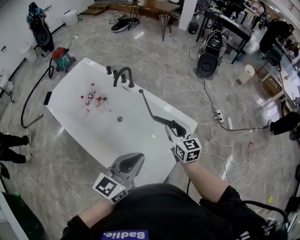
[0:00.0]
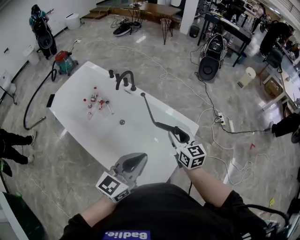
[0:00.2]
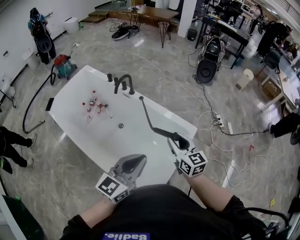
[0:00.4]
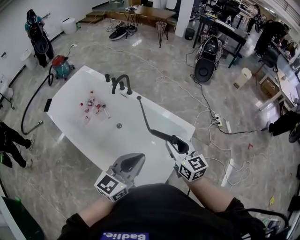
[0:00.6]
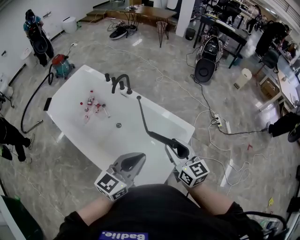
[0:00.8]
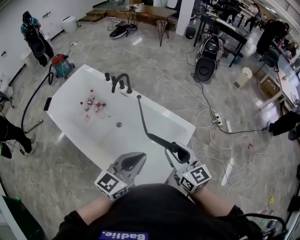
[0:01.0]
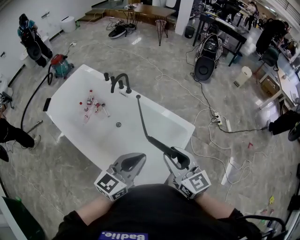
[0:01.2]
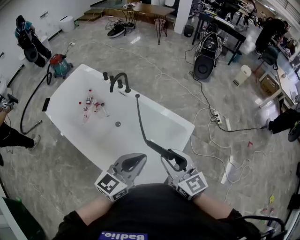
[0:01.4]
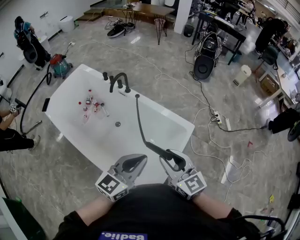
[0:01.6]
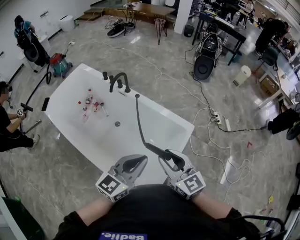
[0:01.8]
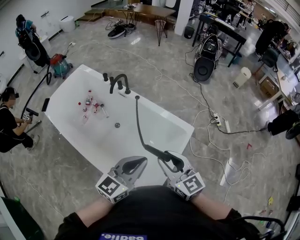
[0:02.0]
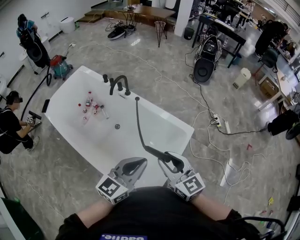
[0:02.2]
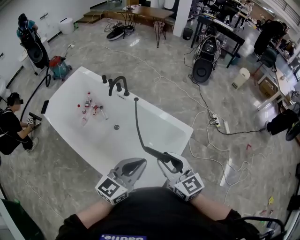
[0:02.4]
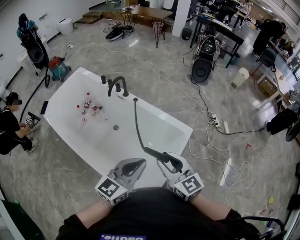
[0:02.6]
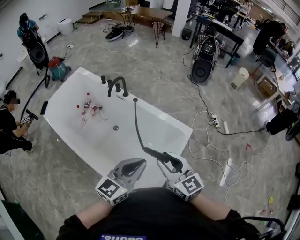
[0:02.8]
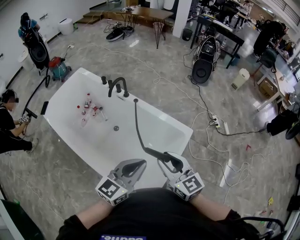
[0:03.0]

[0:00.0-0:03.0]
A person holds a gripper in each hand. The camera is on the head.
0:00.0 to 0:01.6: The right gripper heads backward and upward, covering some 15 cm.
0:01.6 to 0:03.0: There are only small adjustments of the grippers.

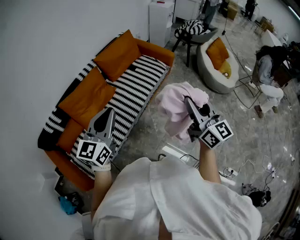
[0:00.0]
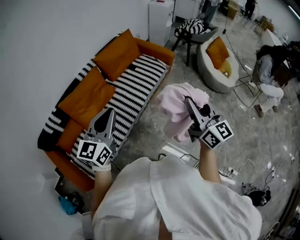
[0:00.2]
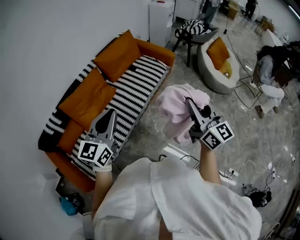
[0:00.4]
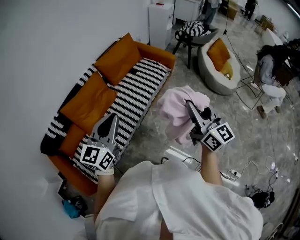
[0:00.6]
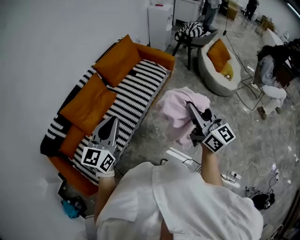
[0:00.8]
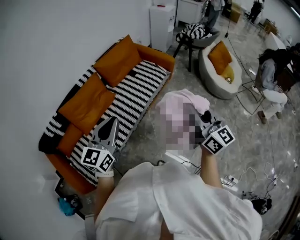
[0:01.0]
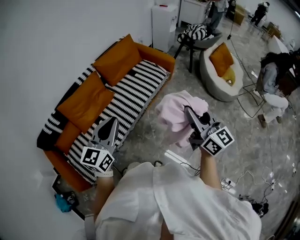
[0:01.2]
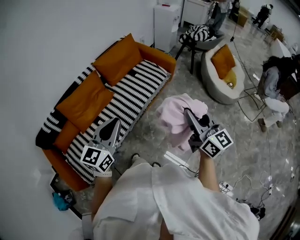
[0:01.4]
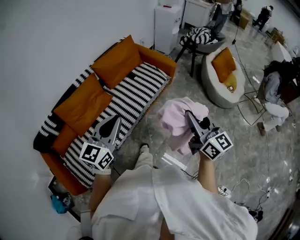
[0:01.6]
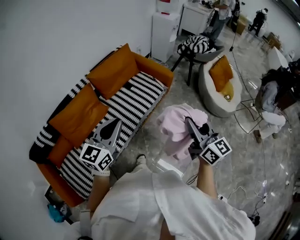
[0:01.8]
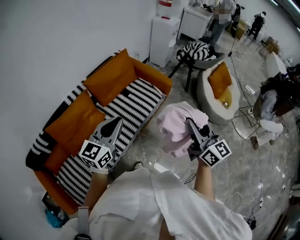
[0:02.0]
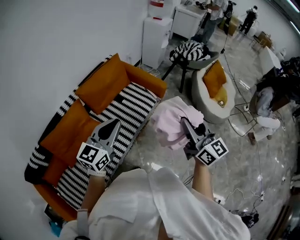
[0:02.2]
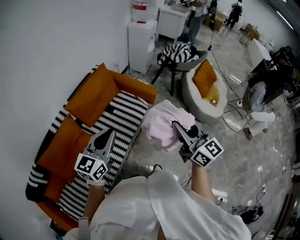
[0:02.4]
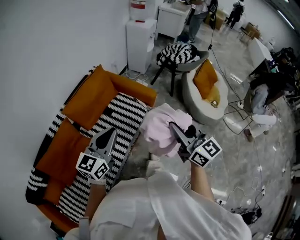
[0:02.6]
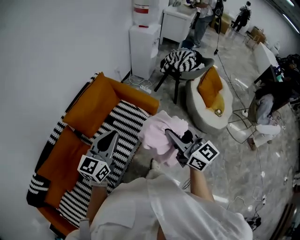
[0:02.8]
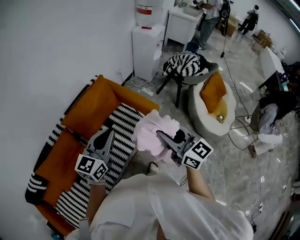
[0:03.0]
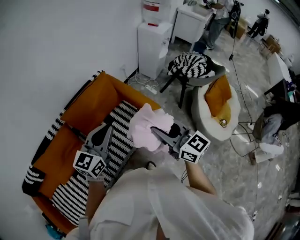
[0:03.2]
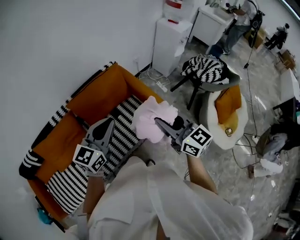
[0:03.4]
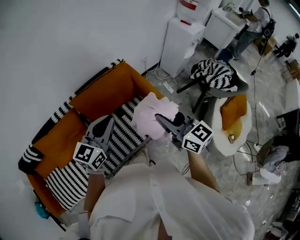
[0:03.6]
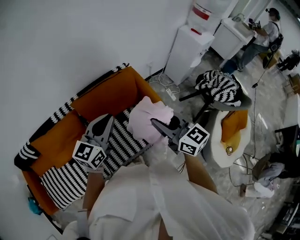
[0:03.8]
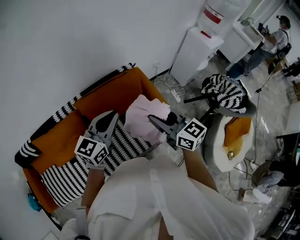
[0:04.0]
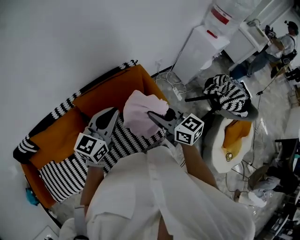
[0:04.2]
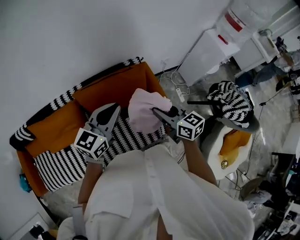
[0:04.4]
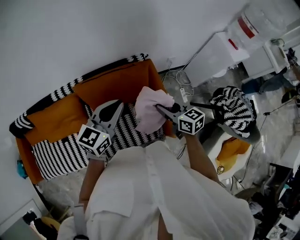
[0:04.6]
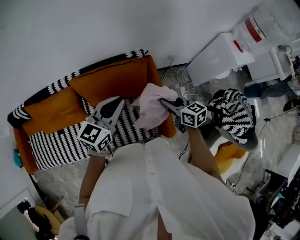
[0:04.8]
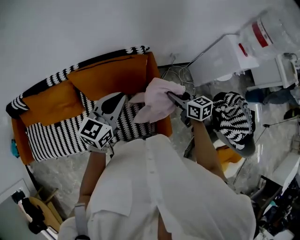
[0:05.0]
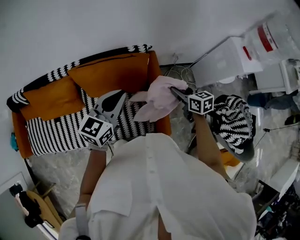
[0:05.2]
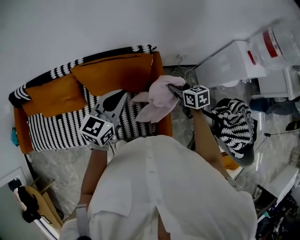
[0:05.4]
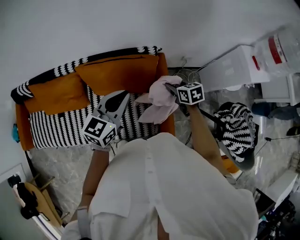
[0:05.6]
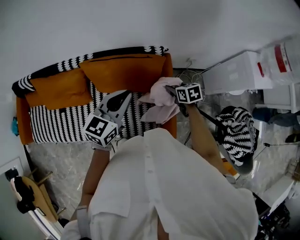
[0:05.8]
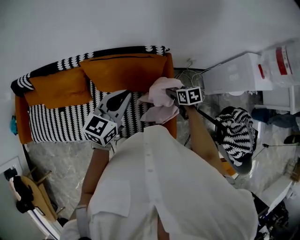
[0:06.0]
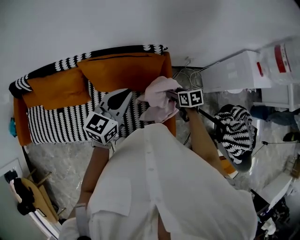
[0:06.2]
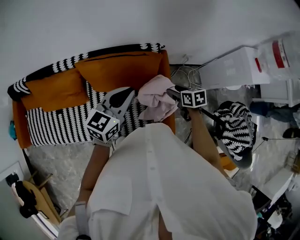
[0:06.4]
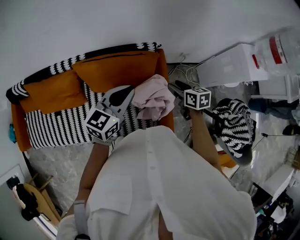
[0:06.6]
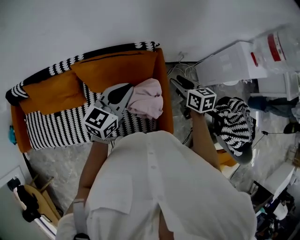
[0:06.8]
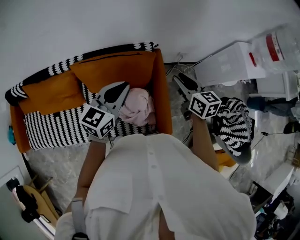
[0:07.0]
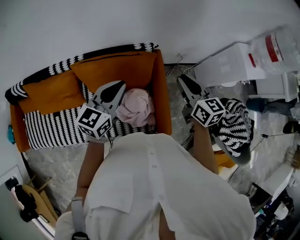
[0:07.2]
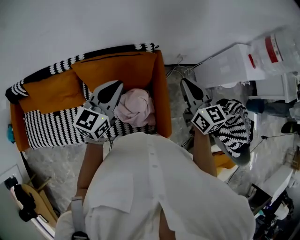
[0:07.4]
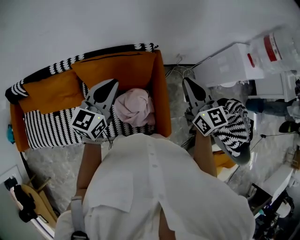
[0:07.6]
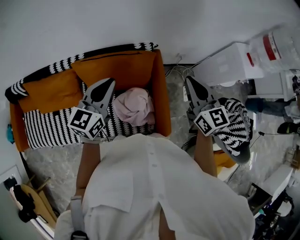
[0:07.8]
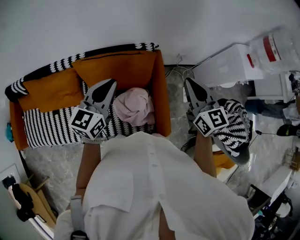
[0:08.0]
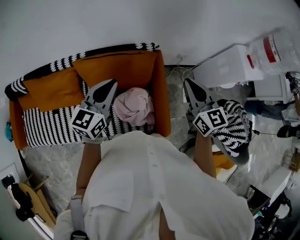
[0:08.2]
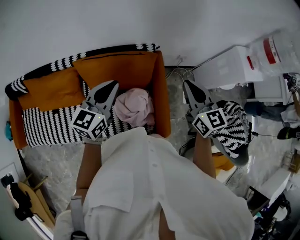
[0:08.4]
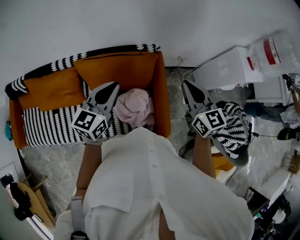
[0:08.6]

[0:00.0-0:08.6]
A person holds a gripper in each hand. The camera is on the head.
0:00.0 to 0:01.4: The two grippers go approximately 10 cm to the right.
0:01.4 to 0:02.8: The grippers both shift forward by roughly 40 cm.
0:02.8 to 0:04.4: The left gripper ends up about 30 cm from where it was, and changes its angle by some 30 degrees, while the right gripper shifts by some 40 cm, and rotates about 50 degrees.
0:04.4 to 0:05.8: The left gripper moves to the right and downward, approximately 10 cm, and turns by about 20 degrees. The right gripper moves downward, forward and to the right, approximately 25 cm, and angles its fingers downward, by some 40 degrees.
0:05.8 to 0:07.2: The right gripper is displaced upward by about 20 cm, points its fingers about 30 degrees further upward, and closes its fingers.
0:07.2 to 0:08.6: The right gripper changes place by approximately 5 cm.

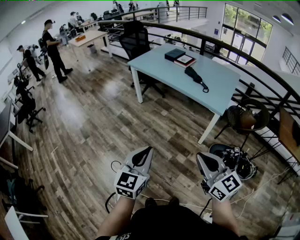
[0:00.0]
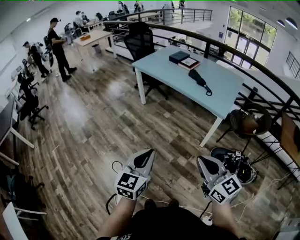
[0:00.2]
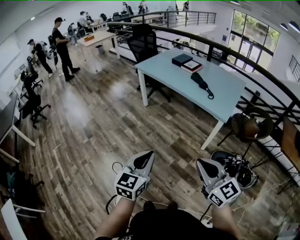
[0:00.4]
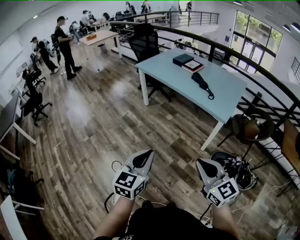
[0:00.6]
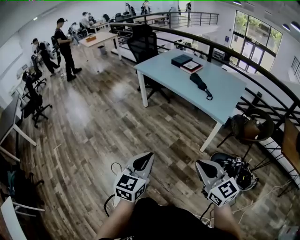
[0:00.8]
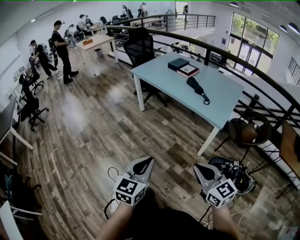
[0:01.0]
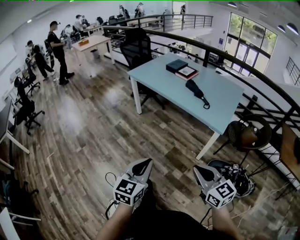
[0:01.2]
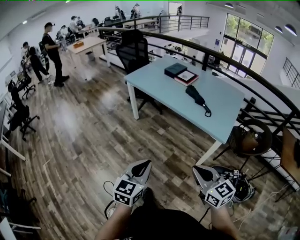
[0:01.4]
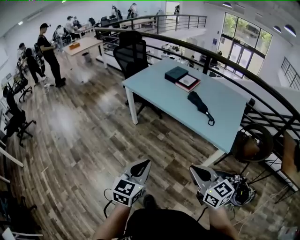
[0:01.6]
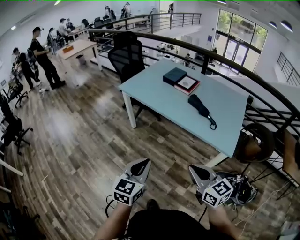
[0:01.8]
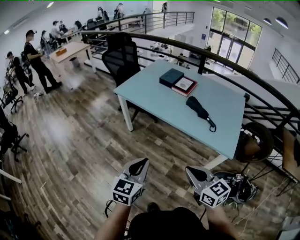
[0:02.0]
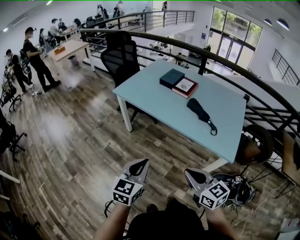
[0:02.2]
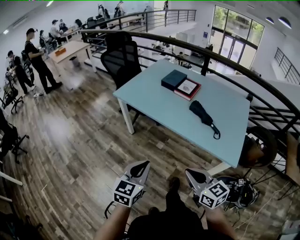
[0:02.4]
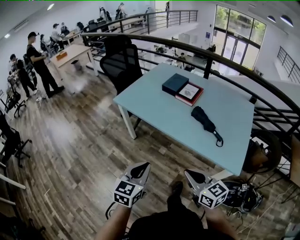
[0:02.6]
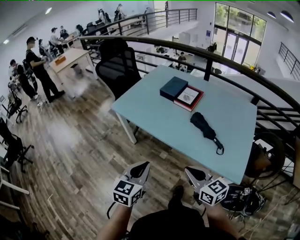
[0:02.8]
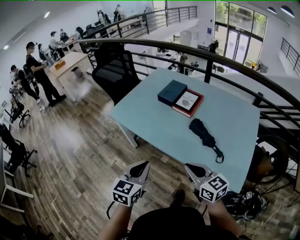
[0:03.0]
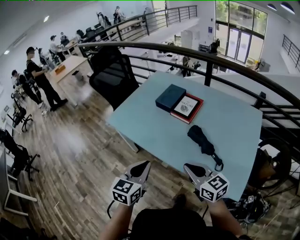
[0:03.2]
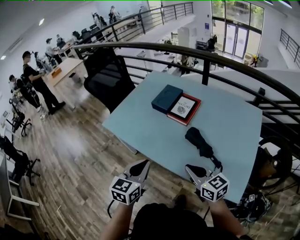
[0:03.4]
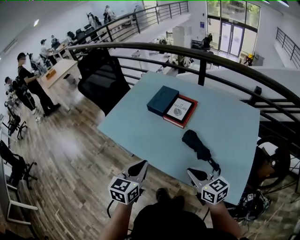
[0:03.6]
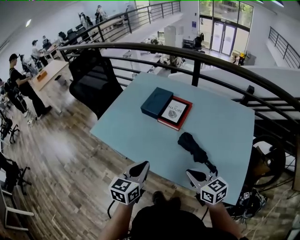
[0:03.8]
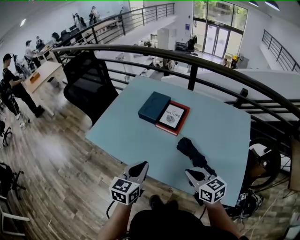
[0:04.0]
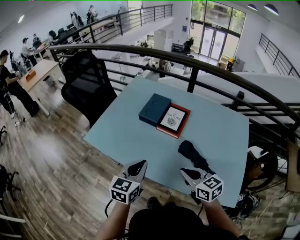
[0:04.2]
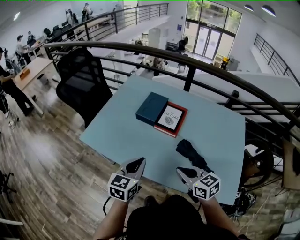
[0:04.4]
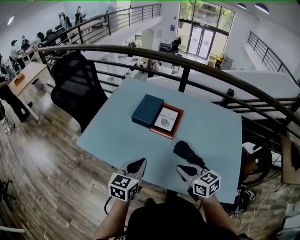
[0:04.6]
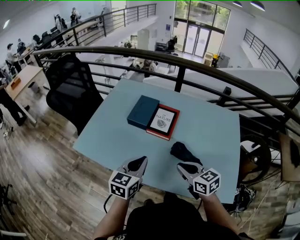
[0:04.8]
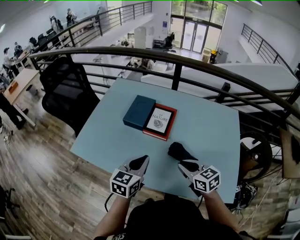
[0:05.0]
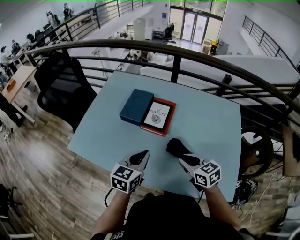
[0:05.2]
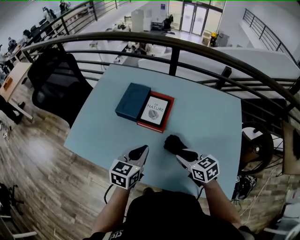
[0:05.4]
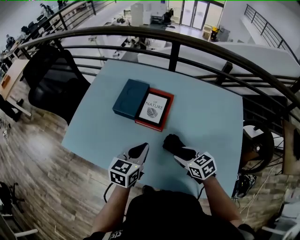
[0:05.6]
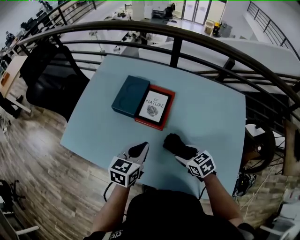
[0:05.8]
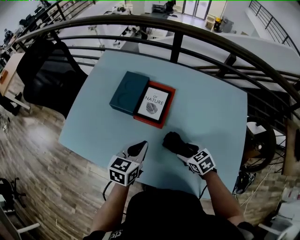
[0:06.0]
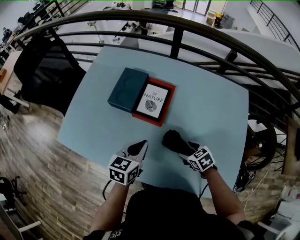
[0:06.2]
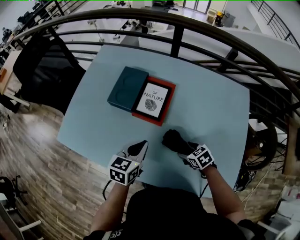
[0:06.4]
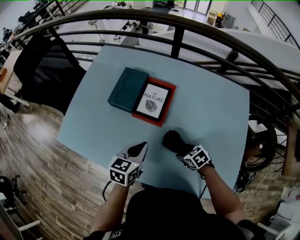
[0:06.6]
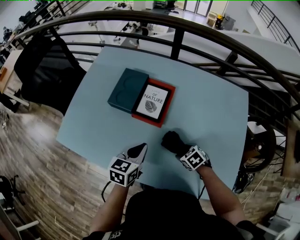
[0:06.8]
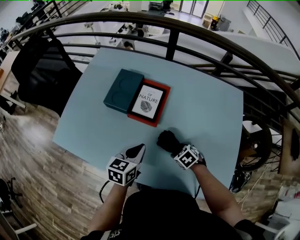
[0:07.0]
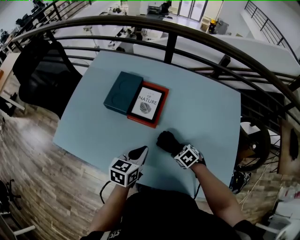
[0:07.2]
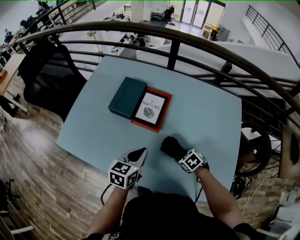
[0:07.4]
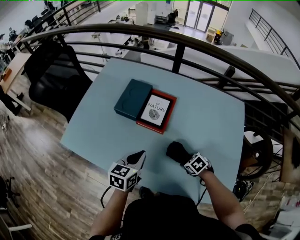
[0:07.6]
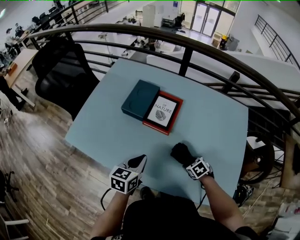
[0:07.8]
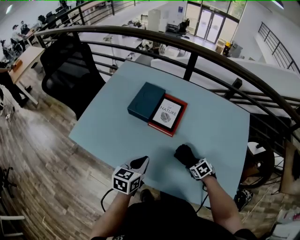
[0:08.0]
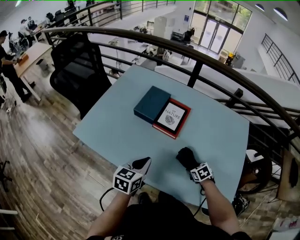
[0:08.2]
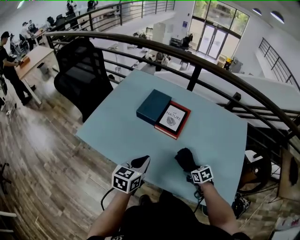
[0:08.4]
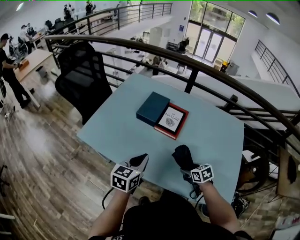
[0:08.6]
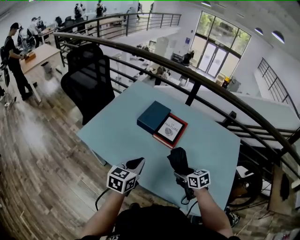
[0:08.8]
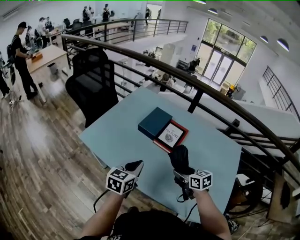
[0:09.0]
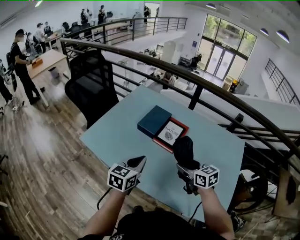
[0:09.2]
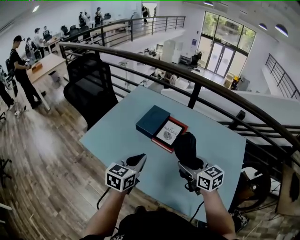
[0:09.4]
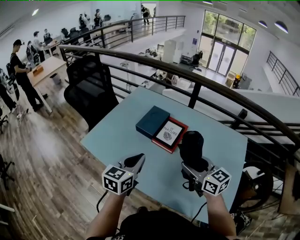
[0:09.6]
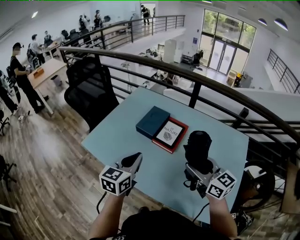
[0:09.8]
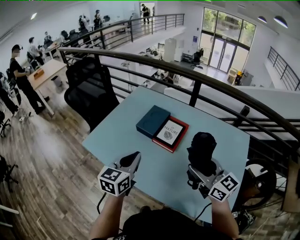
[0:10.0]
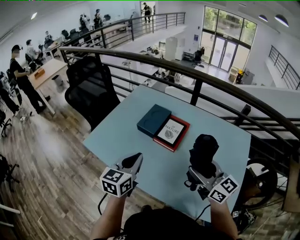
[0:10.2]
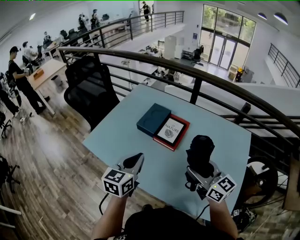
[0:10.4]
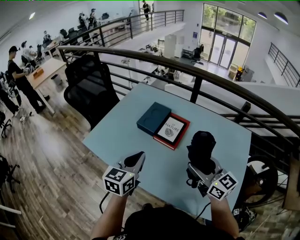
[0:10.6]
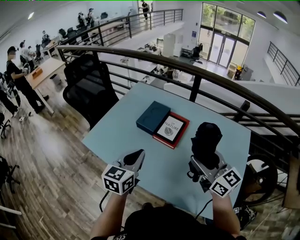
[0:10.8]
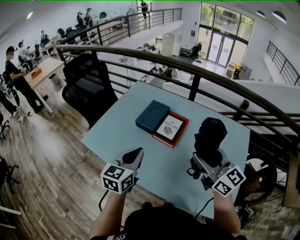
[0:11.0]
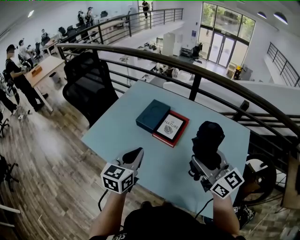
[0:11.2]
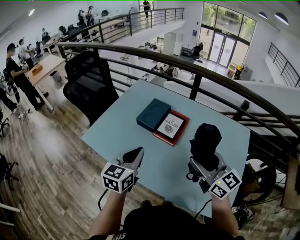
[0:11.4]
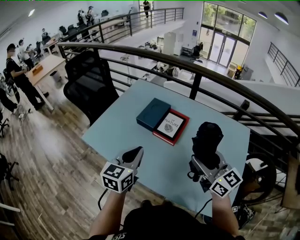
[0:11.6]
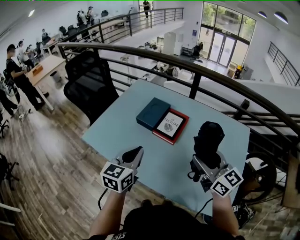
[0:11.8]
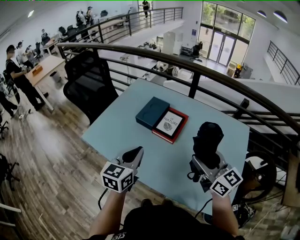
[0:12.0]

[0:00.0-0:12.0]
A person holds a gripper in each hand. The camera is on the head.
0:00.0 to 0:01.6: The two grippers go approximately 25 cm forward.
0:01.6 to 0:03.0: Both grippers move forward, about 40 cm.
0:03.0 to 0:04.4: Both grippers move forward, some 20 cm.
0:04.4 to 0:06.0: The left gripper shifts roughly 20 cm forward, to the right and downward, while the right gripper is displaced downward, to the right and forward by roughly 25 cm, rotates about 30 degrees, and opens its fingers.
0:06.0 to 0:07.6: The right gripper heads downward, covering roughly 5 cm, and turns by about 20 degrees.
0:07.6 to 0:09.0: The left gripper is displaced to the left, upward and backward by roughly 15 cm, while the right gripper shifts roughly 20 cm upward and to the left, and angles its fingers upward, by approximately 40 degrees.
0:09.0 to 0:10.4: The left gripper heads upward, covering approximately 5 cm. Meanwhile the right gripper shifts some 15 cm upward, and tilts its fingers approximately 30 degrees upward.
